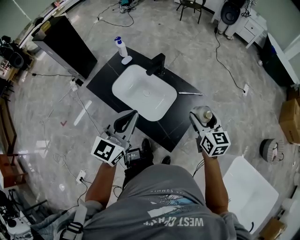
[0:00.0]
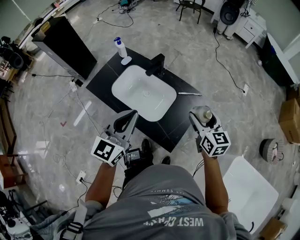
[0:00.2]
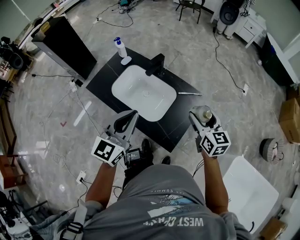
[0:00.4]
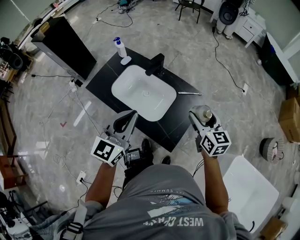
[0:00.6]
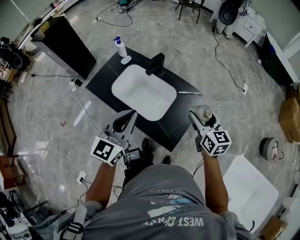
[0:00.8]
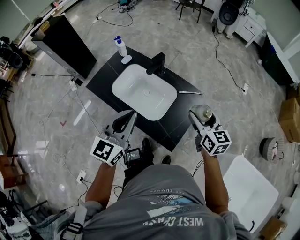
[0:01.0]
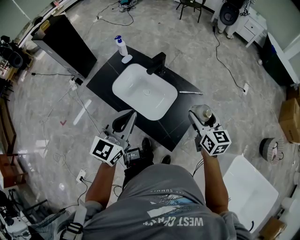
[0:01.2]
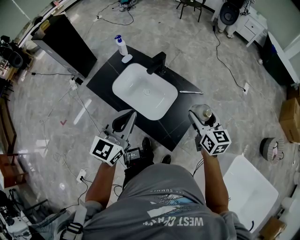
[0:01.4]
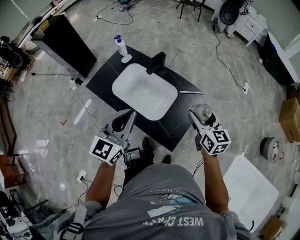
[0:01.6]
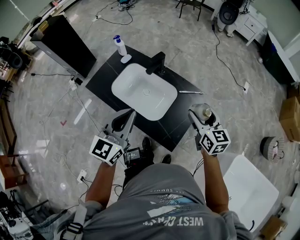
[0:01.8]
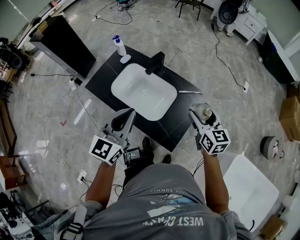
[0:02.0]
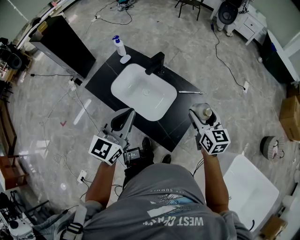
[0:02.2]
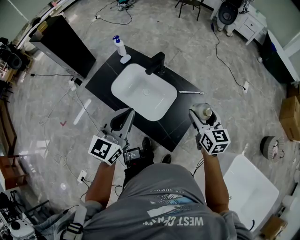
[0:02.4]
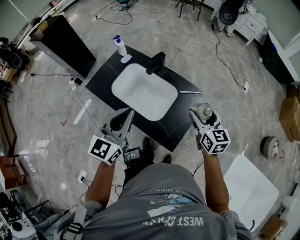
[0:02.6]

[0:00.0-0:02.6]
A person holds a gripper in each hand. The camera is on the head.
0:00.0 to 0:01.2: Both grippers stay put.
0:01.2 to 0:02.6: The two grippers keep their place.

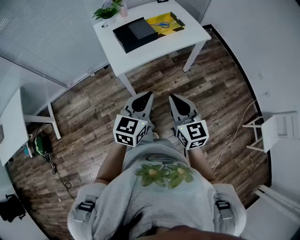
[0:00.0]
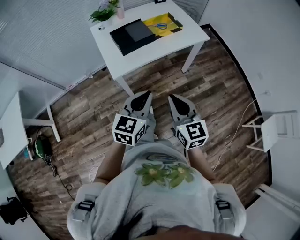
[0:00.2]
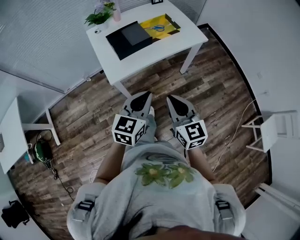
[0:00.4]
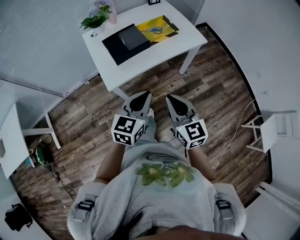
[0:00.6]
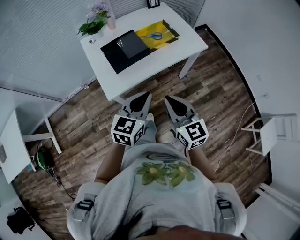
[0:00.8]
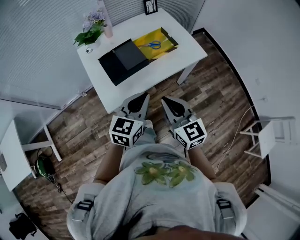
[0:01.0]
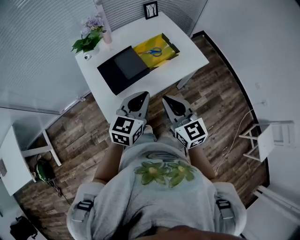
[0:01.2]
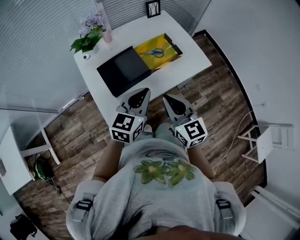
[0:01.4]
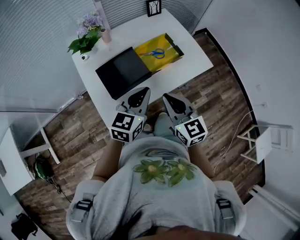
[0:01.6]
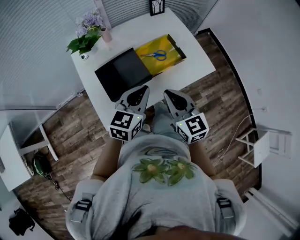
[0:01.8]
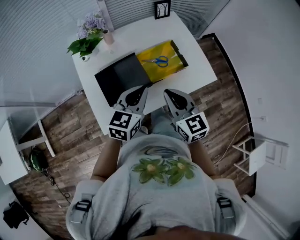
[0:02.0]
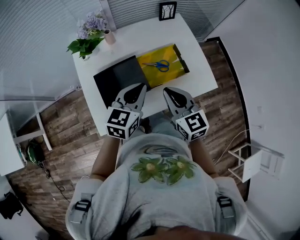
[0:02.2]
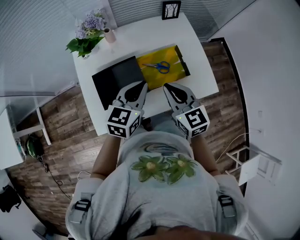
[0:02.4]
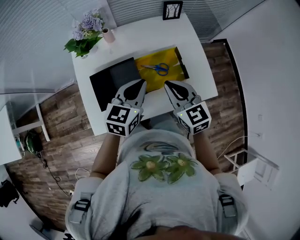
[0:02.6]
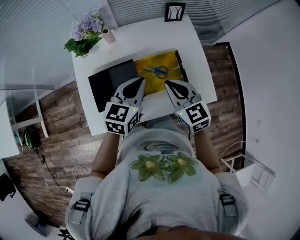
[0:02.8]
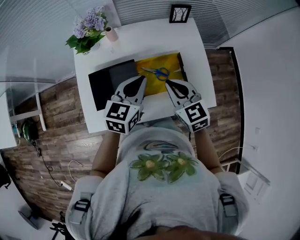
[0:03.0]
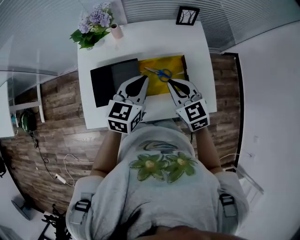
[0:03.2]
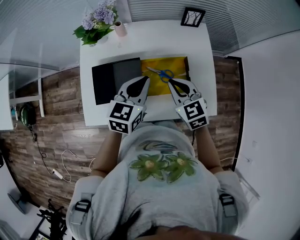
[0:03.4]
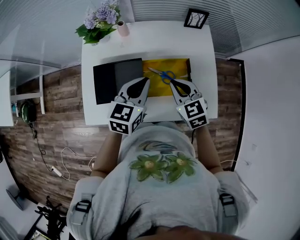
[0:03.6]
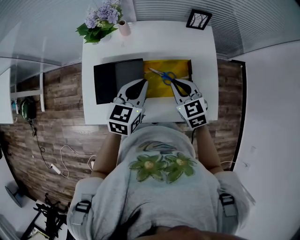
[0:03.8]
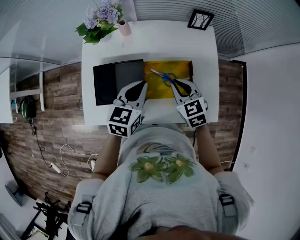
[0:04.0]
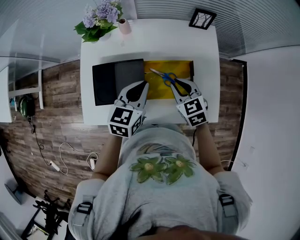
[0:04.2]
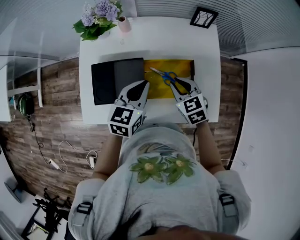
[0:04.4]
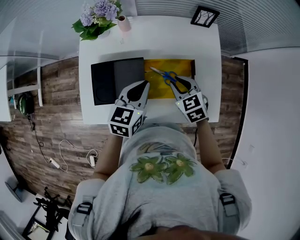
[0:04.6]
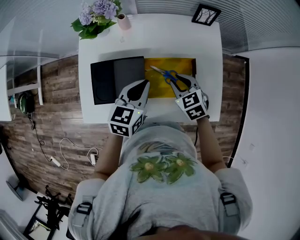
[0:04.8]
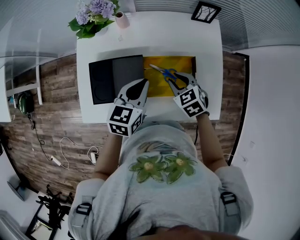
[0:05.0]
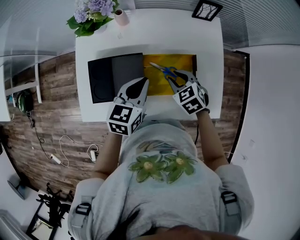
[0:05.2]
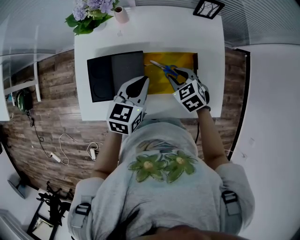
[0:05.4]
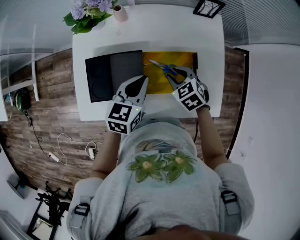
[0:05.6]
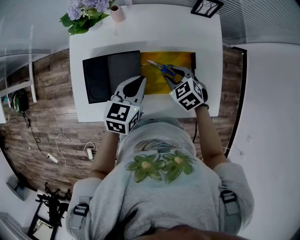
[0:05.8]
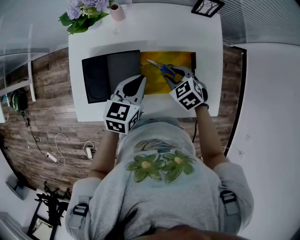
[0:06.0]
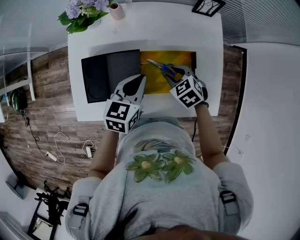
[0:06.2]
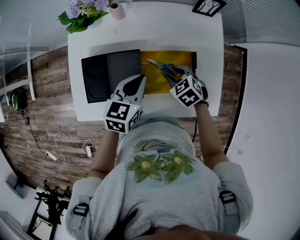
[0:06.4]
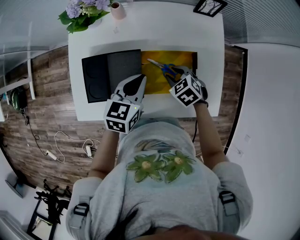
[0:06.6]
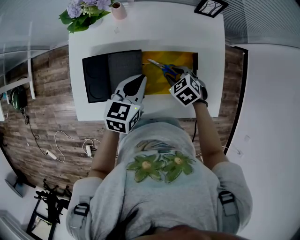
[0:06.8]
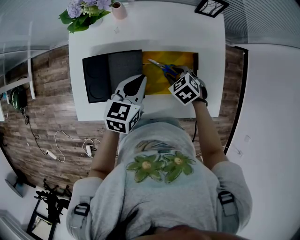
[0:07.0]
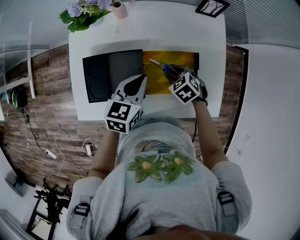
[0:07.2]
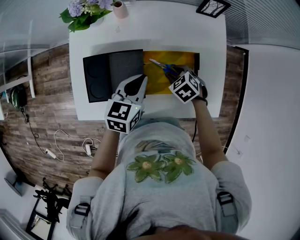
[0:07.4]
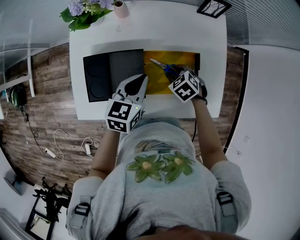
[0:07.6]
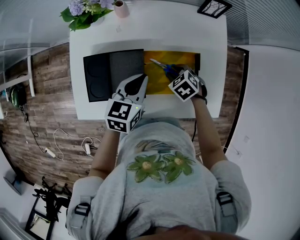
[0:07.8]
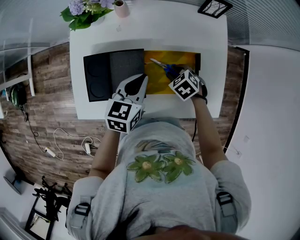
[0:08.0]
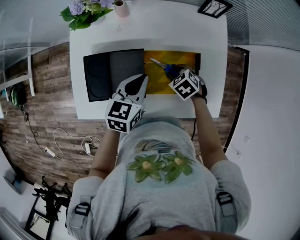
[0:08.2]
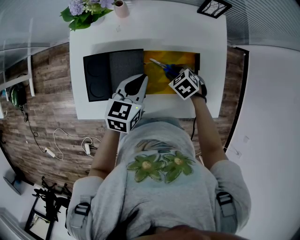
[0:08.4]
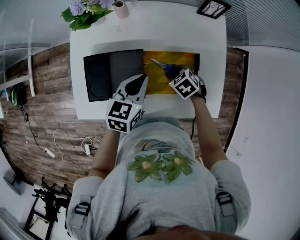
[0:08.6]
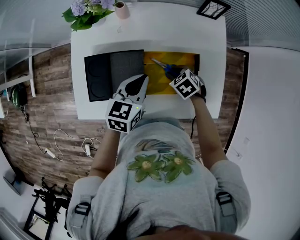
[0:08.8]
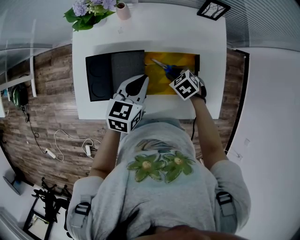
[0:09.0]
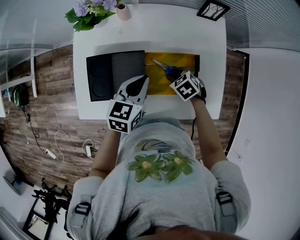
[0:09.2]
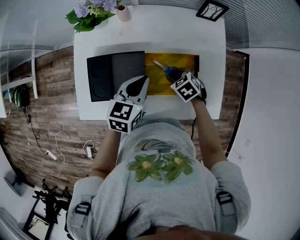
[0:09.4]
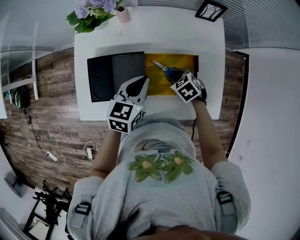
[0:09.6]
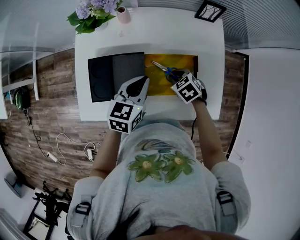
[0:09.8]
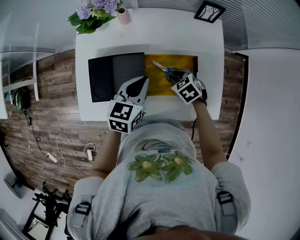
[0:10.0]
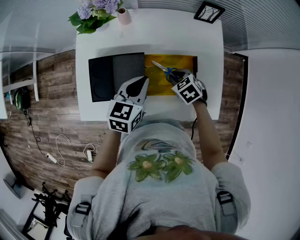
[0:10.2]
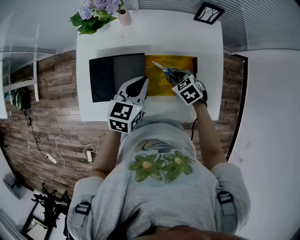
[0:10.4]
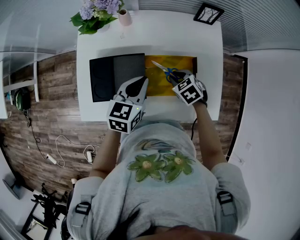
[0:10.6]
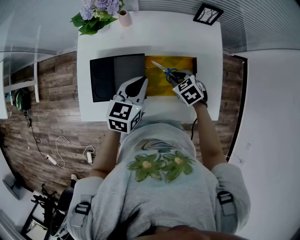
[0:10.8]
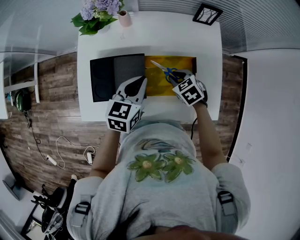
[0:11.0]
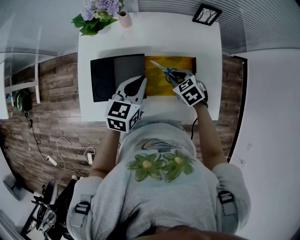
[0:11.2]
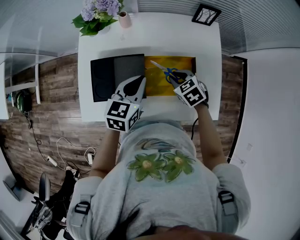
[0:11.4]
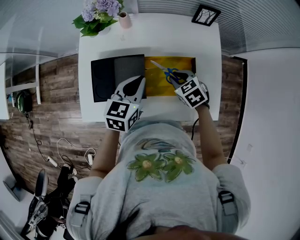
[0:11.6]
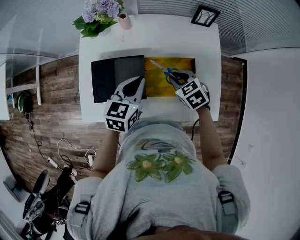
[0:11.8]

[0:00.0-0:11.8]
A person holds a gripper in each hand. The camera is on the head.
0:00.0 to 0:01.4: Both grippers move forward, roughly 30 cm.
0:01.4 to 0:03.0: Both grippers move forward, approximately 25 cm. The left gripper changes its angle by approximately 20 degrees. The right gripper turns by approximately 30 degrees.
0:03.0 to 0:04.4: The left gripper travels downward by roughly 5 cm. The right gripper travels downward by approximately 10 cm.
0:04.4 to 0:06.0: The right gripper heads downward, covering roughly 5 cm.
0:06.0 to 0:07.4: The right gripper is displaced downward by approximately 5 cm.
0:07.4 to 0:08.8: Both grippers stay put.
0:08.8 to 0:10.4: The grippers stay close to where they were, moving slightly.
0:10.4 to 0:11.8: The right gripper shifts approximately 5 cm upward.

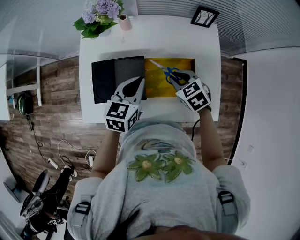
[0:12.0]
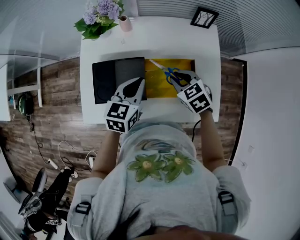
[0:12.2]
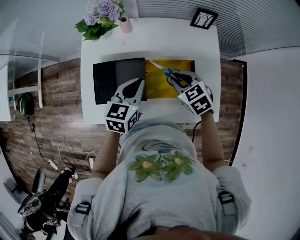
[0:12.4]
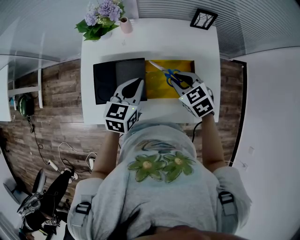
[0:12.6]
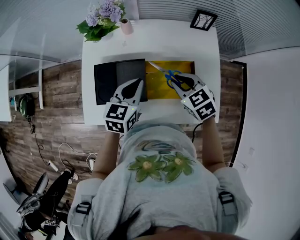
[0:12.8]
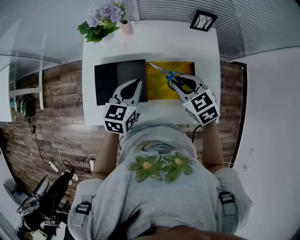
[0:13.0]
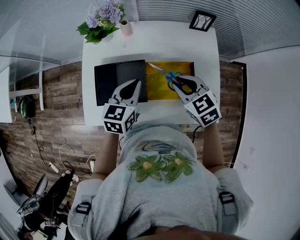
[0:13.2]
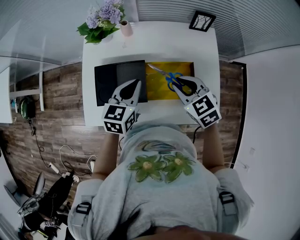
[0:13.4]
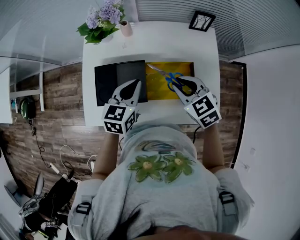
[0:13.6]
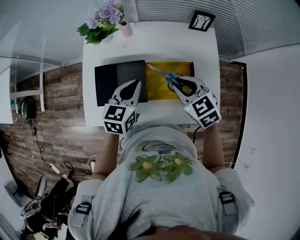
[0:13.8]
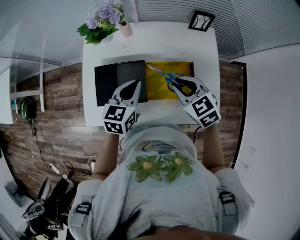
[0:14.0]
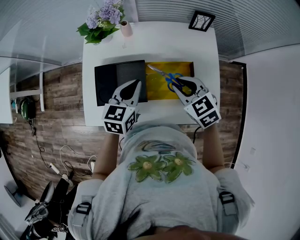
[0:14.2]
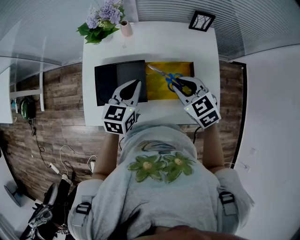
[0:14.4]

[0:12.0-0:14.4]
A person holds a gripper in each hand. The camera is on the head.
0:12.0 to 0:13.2: The right gripper heads upward, covering about 10 cm.
0:13.2 to 0:14.4: Both grippers stay put.

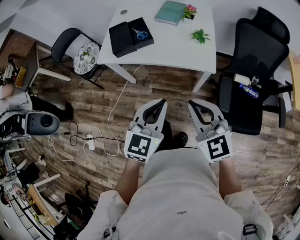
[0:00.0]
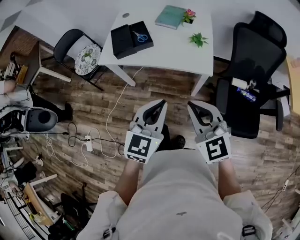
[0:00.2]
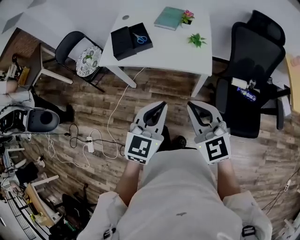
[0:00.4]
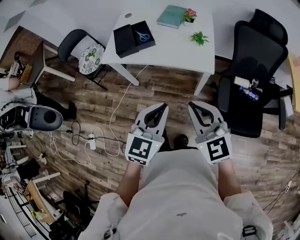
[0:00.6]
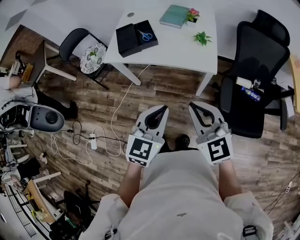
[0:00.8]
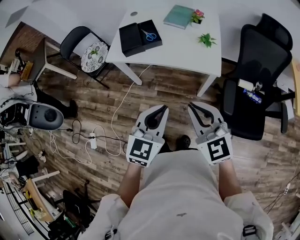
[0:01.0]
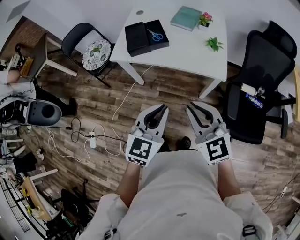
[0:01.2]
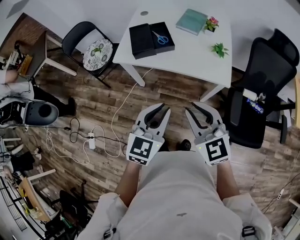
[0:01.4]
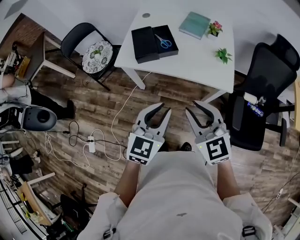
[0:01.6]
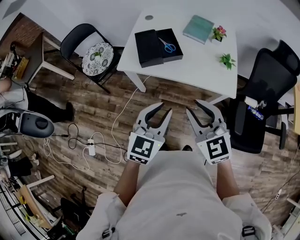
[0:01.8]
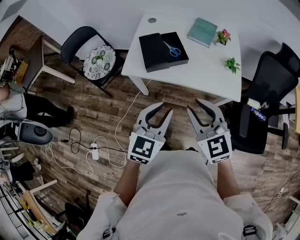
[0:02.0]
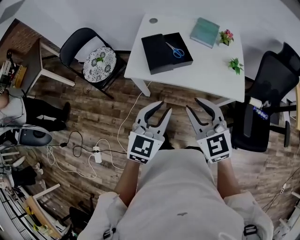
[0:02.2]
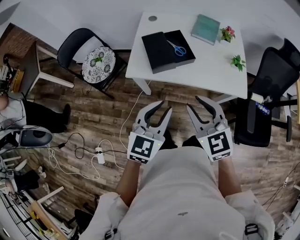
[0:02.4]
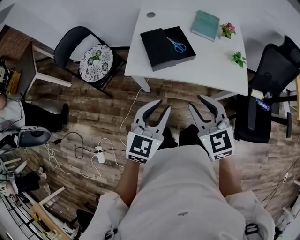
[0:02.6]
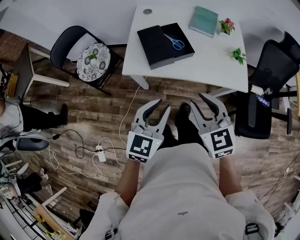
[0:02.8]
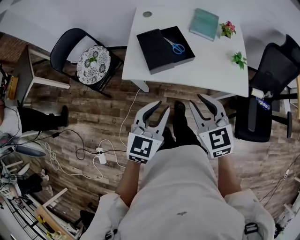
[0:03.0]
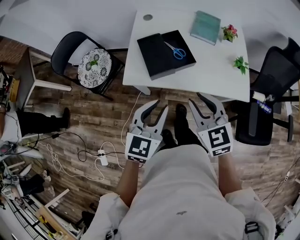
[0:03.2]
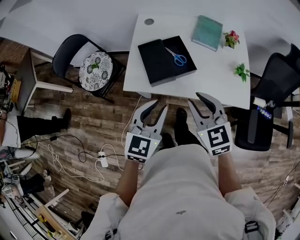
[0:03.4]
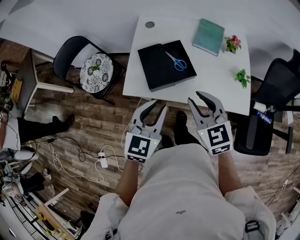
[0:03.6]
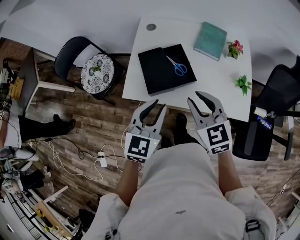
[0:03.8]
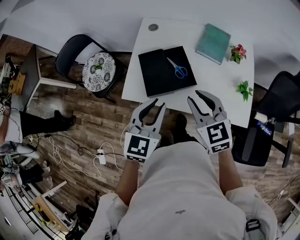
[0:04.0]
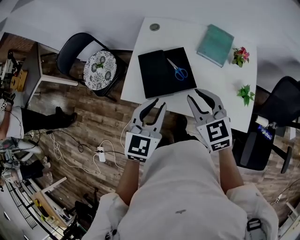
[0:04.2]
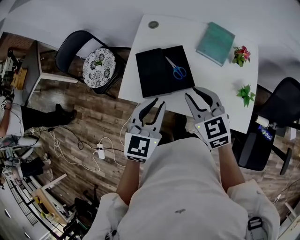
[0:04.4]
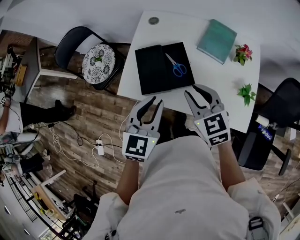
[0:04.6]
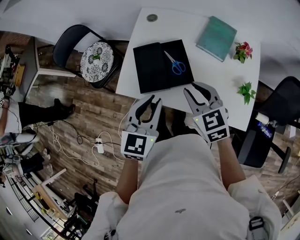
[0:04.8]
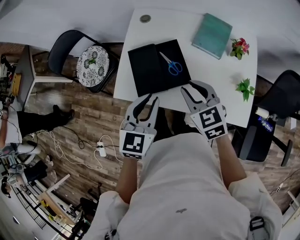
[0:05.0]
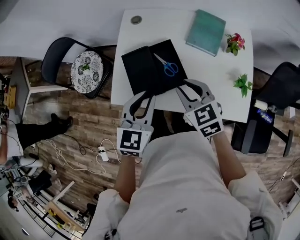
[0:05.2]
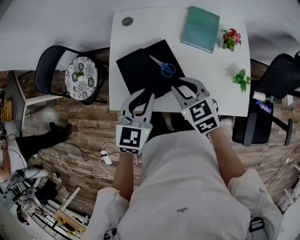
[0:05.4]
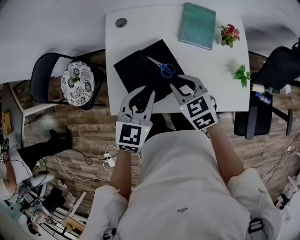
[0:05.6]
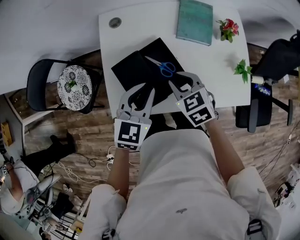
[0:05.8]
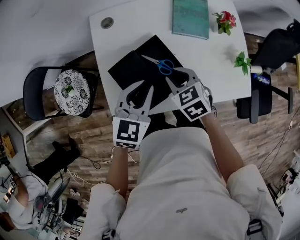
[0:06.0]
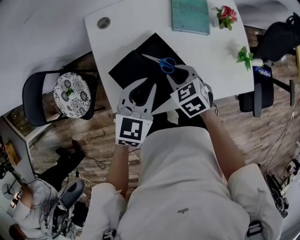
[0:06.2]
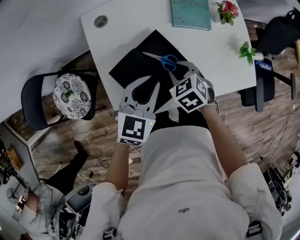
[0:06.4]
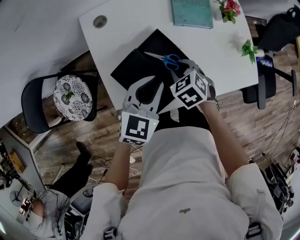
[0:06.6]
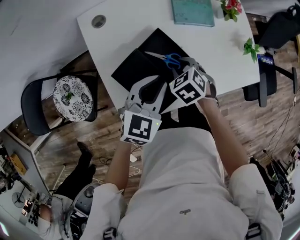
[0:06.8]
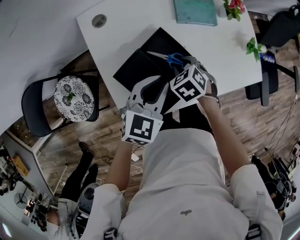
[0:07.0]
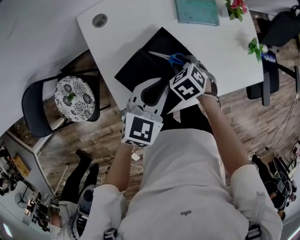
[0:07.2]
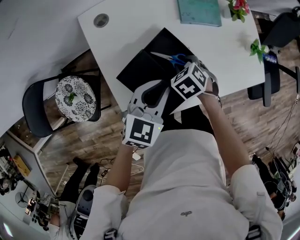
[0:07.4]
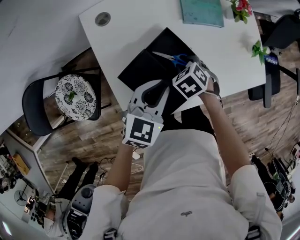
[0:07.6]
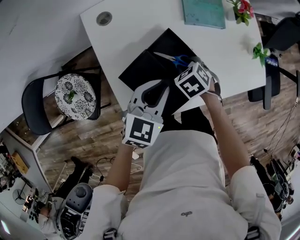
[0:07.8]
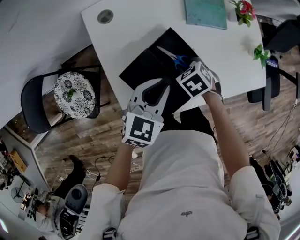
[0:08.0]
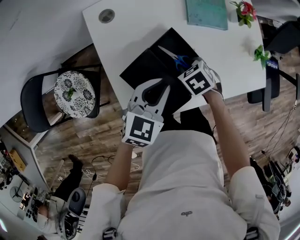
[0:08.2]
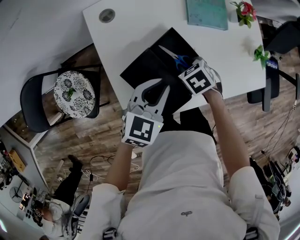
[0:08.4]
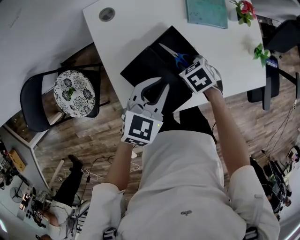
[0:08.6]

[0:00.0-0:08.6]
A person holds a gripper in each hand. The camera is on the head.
0:00.0 to 0:01.4: Both grippers move to the left, approximately 10 cm.
0:01.4 to 0:02.8: Both grippers move to the left and forward, some 20 cm.
0:02.8 to 0:04.4: The two grippers go some 20 cm forward.
0:04.4 to 0:05.8: The right gripper heads downward and forward, covering about 15 cm, and turns by approximately 30 degrees; the left gripper shifts some 15 cm forward and downward, and swivels some 20 degrees.
0:05.8 to 0:07.2: The right gripper goes about 10 cm downward, and turns by some 30 degrees; the left gripper shifts about 5 cm downward, and changes its angle by some 20 degrees.
0:07.2 to 0:08.6: The grippers move only a little.
